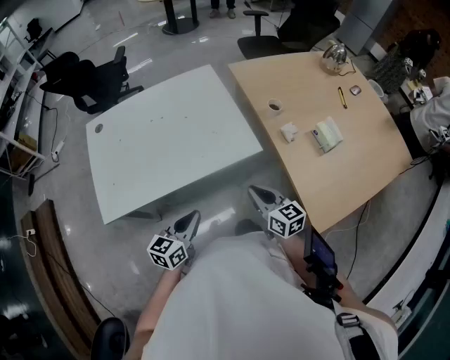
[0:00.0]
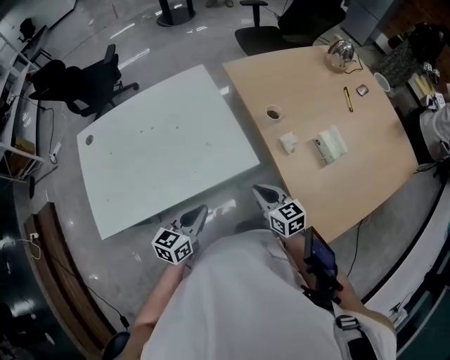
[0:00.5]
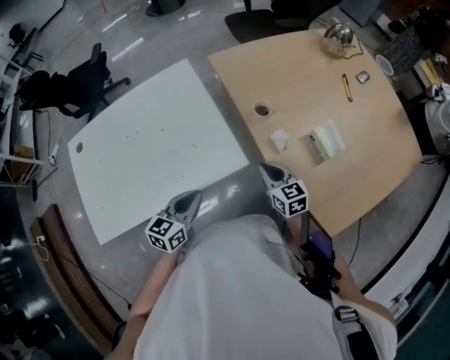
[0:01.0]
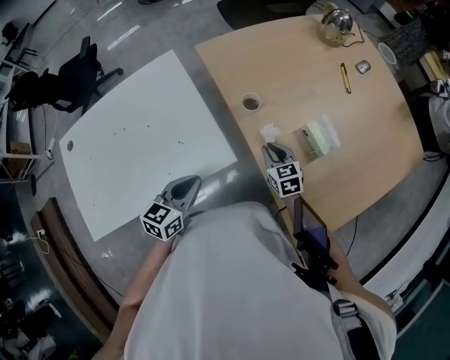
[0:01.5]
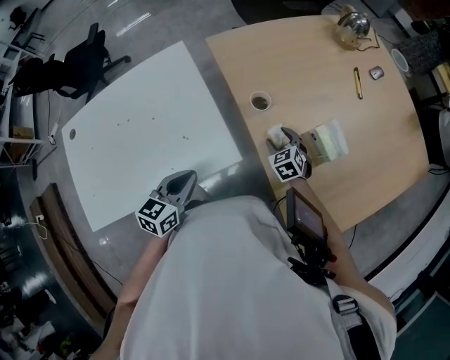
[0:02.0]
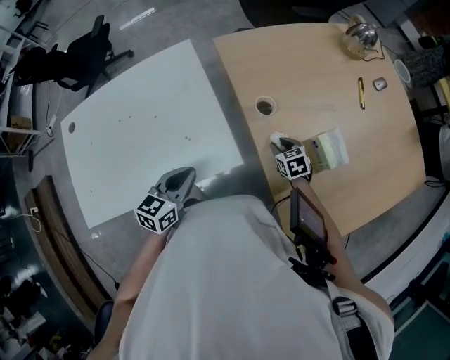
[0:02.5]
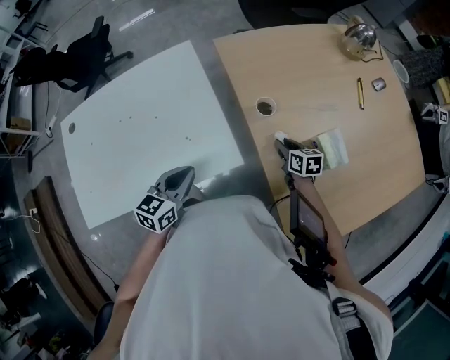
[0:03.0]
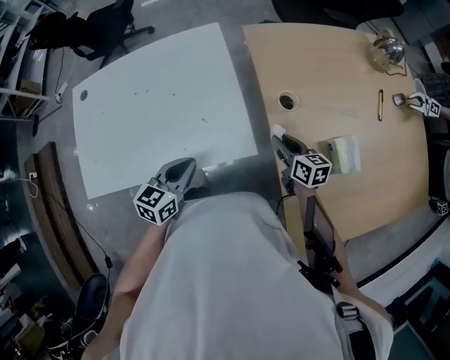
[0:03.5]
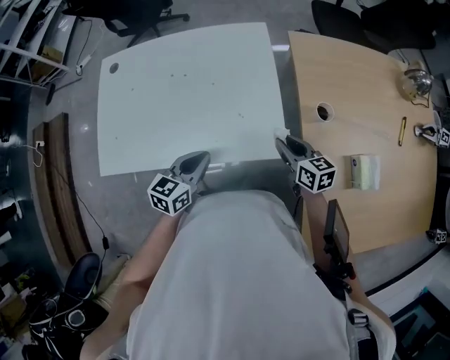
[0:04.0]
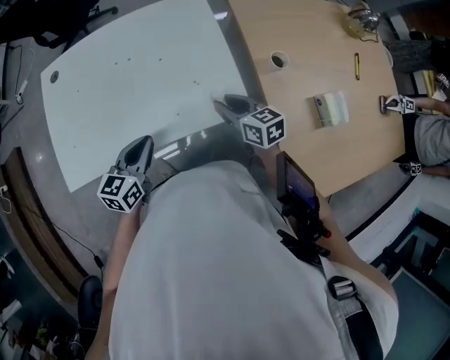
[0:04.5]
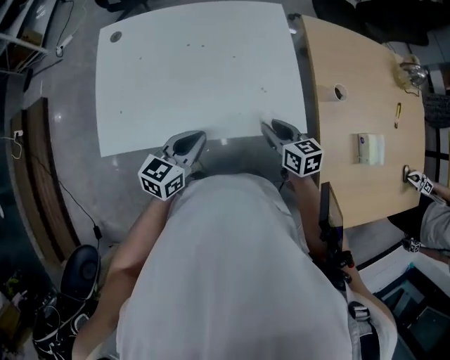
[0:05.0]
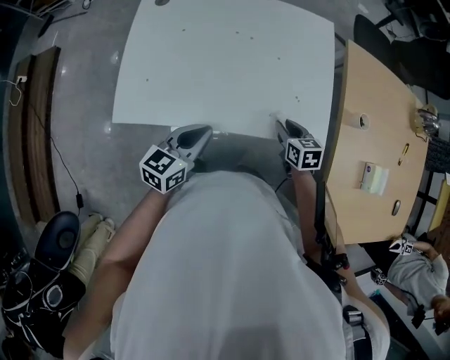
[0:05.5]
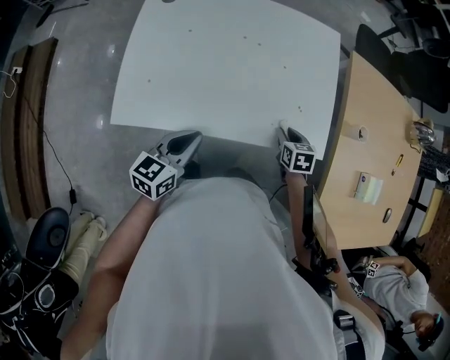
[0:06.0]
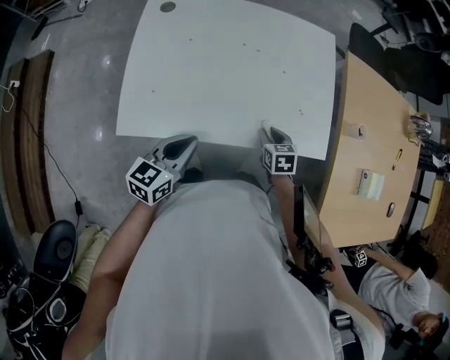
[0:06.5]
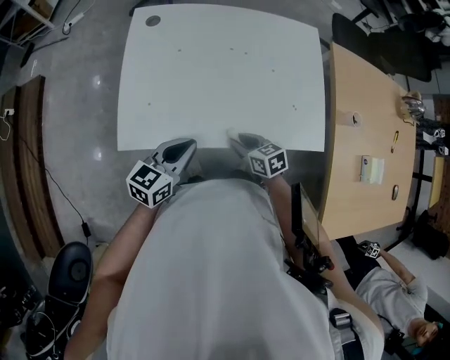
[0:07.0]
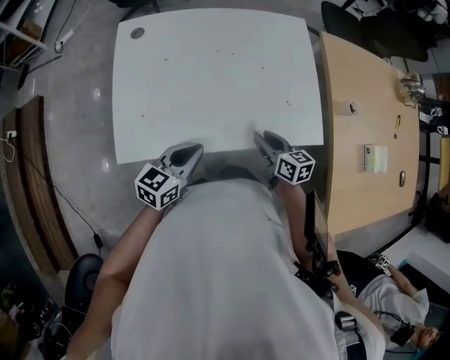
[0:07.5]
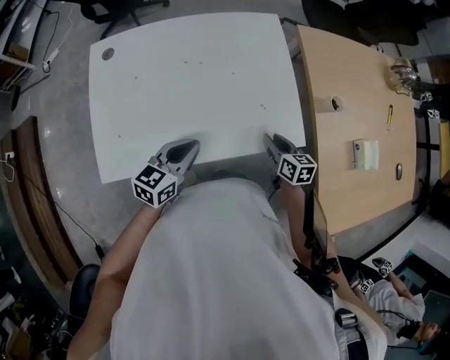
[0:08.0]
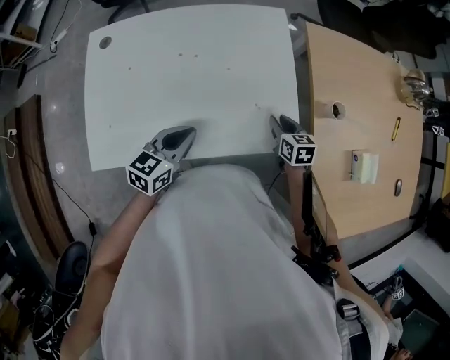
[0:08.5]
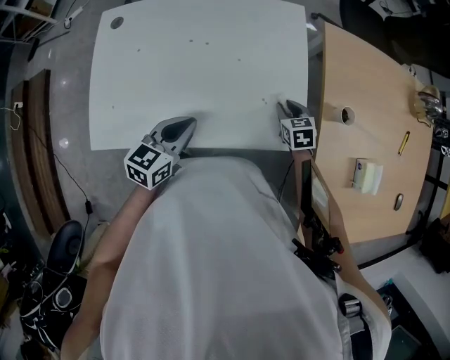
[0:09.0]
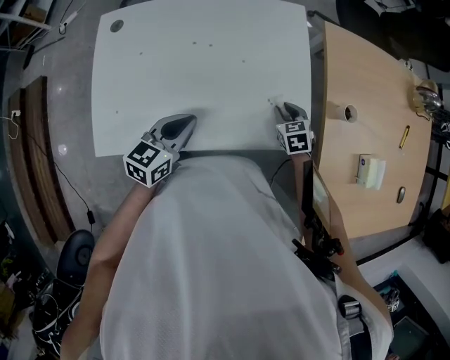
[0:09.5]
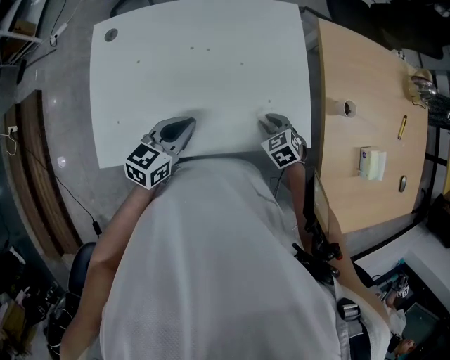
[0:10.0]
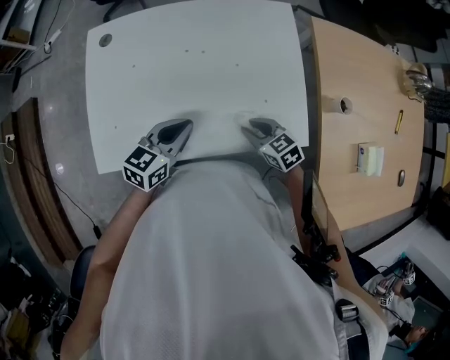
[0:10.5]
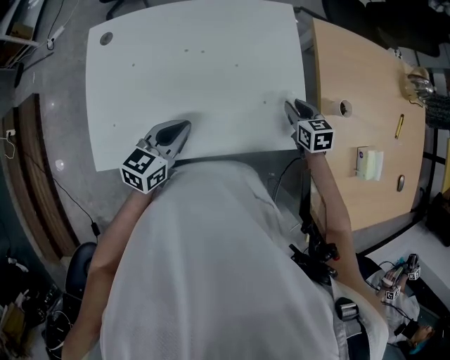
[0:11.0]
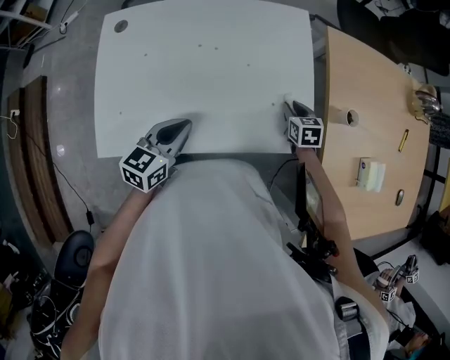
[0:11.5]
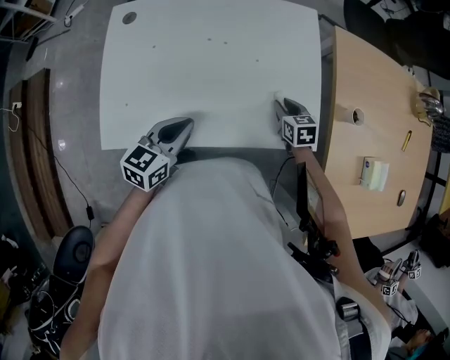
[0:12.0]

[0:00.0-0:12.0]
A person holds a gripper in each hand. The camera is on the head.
0:00.0 to 0:02.0: The right gripper moves forward, to the right and downward, about 35 cm, angles its fingers downward, by about 30 degrees, and opens its fingers, while the left gripper heads forward and to the right, covering about 25 cm.
0:02.0 to 0:04.0: The right gripper moves roughly 20 cm, changes its angle by approximately 40 degrees, and closes its fingers. Meanwhile the left gripper ends up approximately 10 cm from where it was.
0:04.0 to 0:06.0: The left gripper goes approximately 20 cm to the left. Meanwhile the right gripper travels to the left and downward by approximately 20 cm, and rotates about 30 degrees.
0:06.0 to 0:08.0: The left gripper is displaced forward and to the right by approximately 10 cm; the right gripper travels to the left and back again, roughly 20 cm each way, and changes its angle by about 30 degrees.
0:08.0 to 0:10.0: The right gripper goes forward and returns, some 10 cm each way, and rolls counterclockwise, seen from behind, by roughly 50 degrees.
0:10.0 to 0:12.0: The right gripper swings left and right, some 15 cm each way, with 2 reversals, and turns by about 30 degrees.

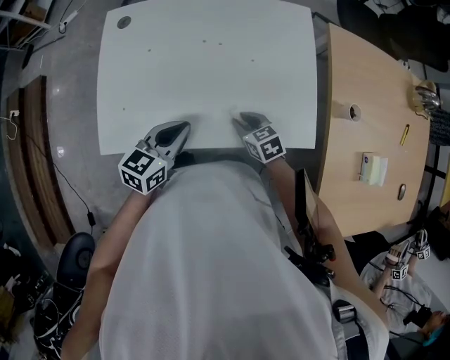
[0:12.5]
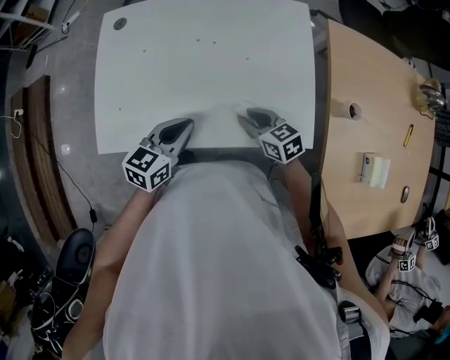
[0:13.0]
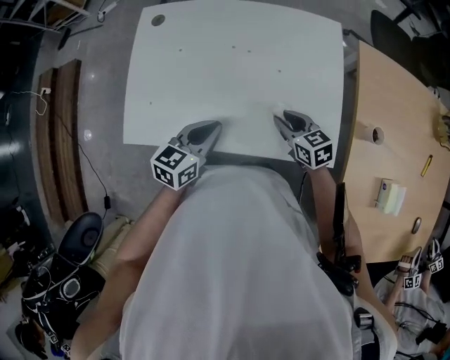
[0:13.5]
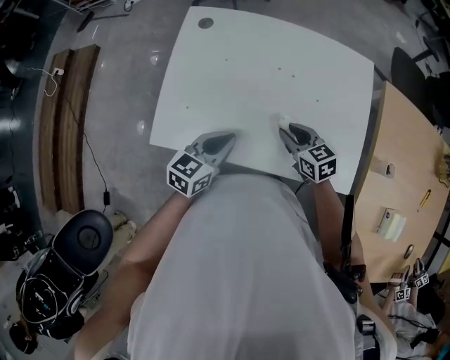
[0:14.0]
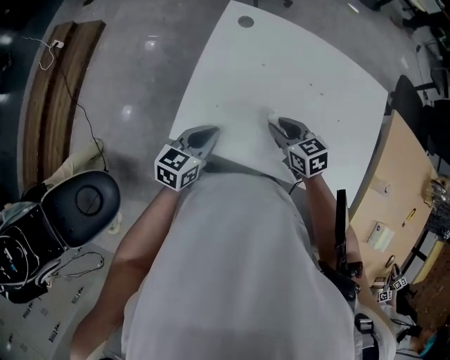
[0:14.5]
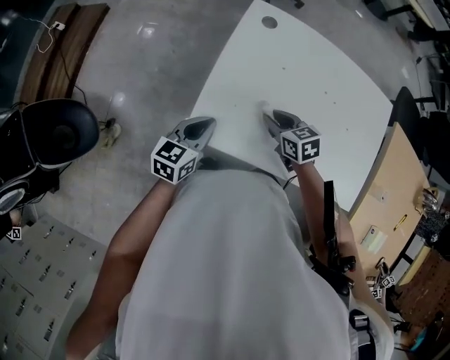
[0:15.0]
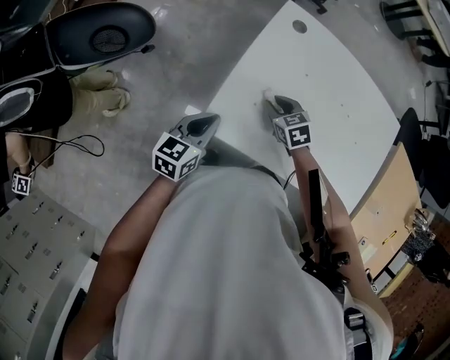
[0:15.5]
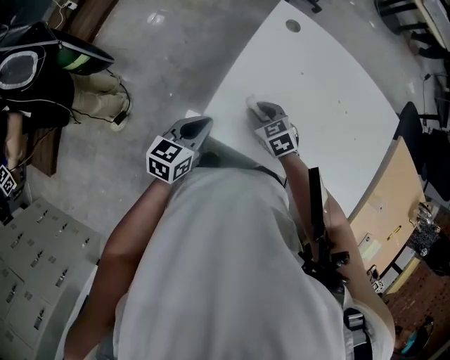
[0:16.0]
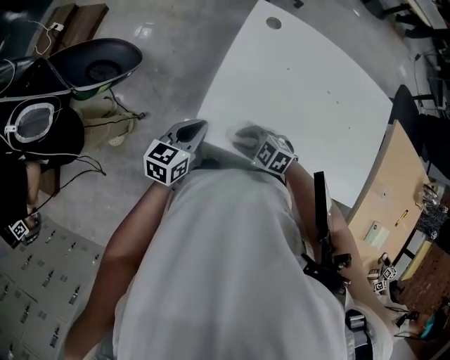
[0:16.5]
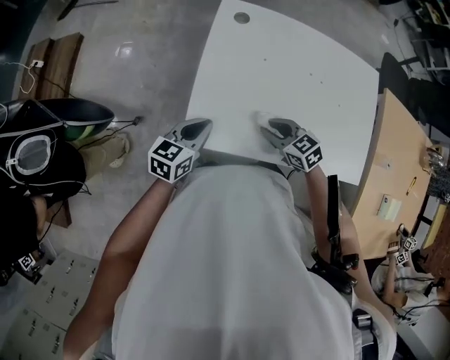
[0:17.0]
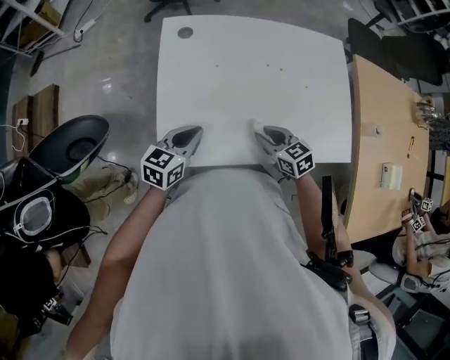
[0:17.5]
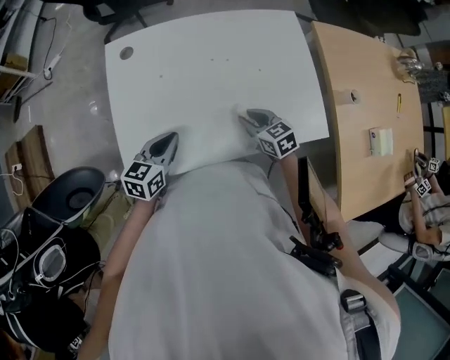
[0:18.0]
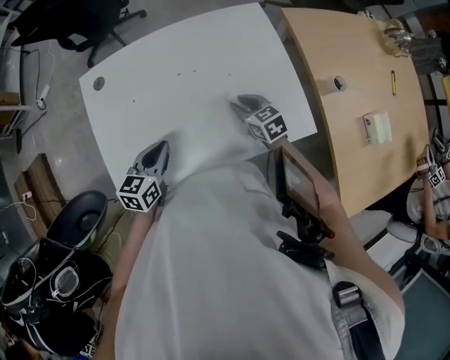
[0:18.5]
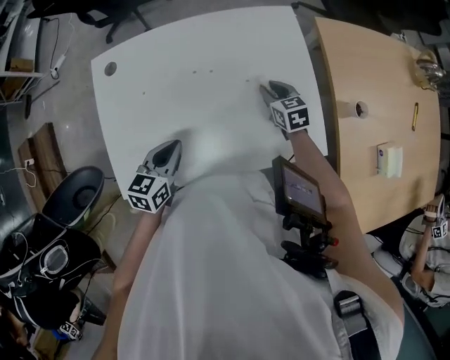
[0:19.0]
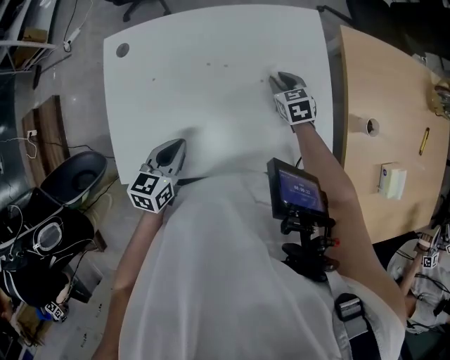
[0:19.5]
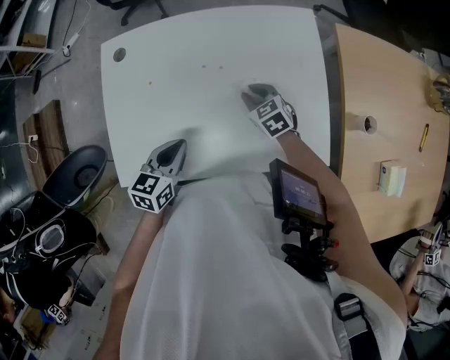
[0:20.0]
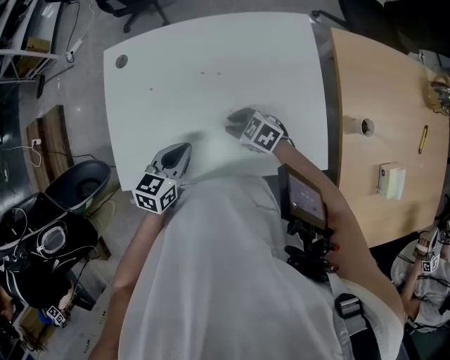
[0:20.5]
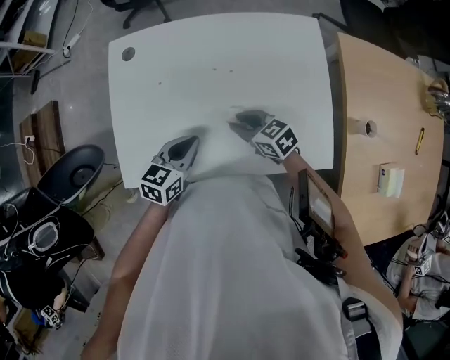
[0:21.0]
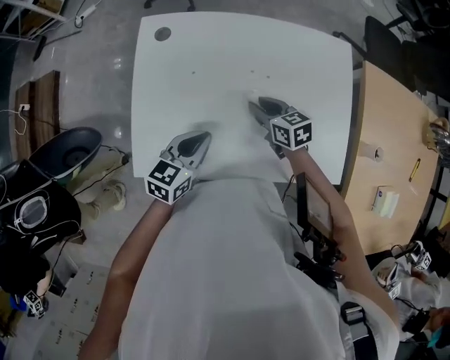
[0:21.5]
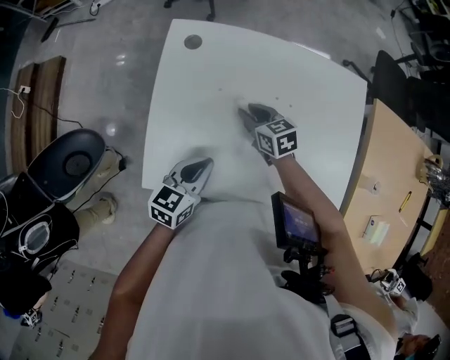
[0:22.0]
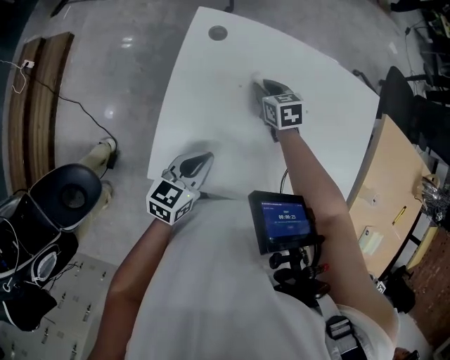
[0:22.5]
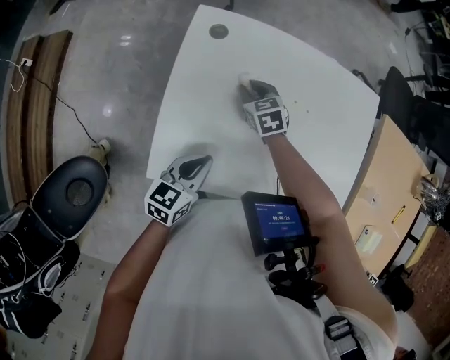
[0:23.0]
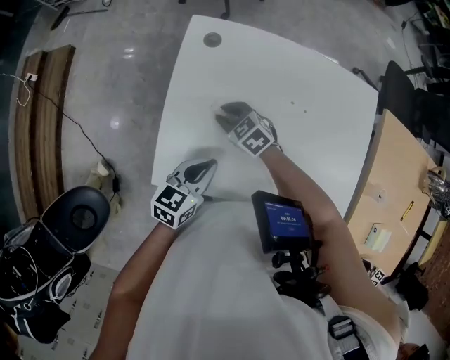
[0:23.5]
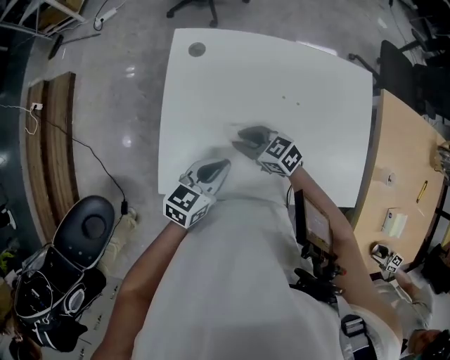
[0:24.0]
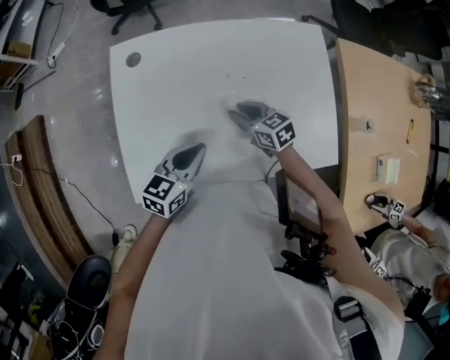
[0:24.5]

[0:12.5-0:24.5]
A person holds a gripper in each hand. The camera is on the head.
0:12.5 to 0:14.5: The left gripper moves to the left, some 20 cm, and rotates roughly 20 degrees, while the right gripper travels to the left, forward and upward by some 20 cm.
0:14.5 to 0:16.5: The right gripper travels to the left and downward by about 20 cm, and rotates some 40 degrees; the left gripper moves to the left, about 10 cm.
0:16.5 to 0:18.5: The left gripper ends up some 25 cm from where it was, and changes its angle by roughly 30 degrees. The right gripper changes place by roughly 40 cm, and rotates roughly 70 degrees.
0:18.5 to 0:20.5: The right gripper ends up about 10 cm from where it was, and changes its angle by roughly 40 degrees; the left gripper ends up some 5 cm from where it was.
0:20.5 to 0:22.5: The left gripper goes approximately 15 cm to the left; the right gripper is displaced forward and to the left by some 25 cm, and changes its angle by some 30 degrees.
0:22.5 to 0:24.5: The right gripper shifts approximately 15 cm backward and to the right; the left gripper heads to the right, covering approximately 10 cm.

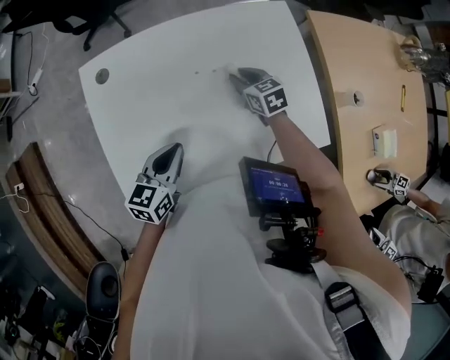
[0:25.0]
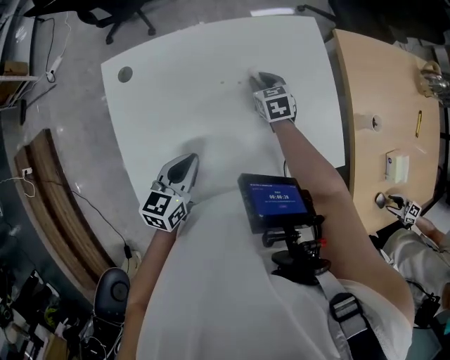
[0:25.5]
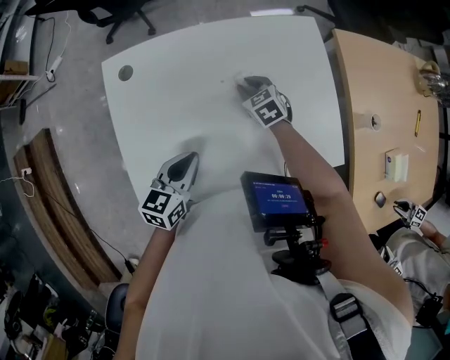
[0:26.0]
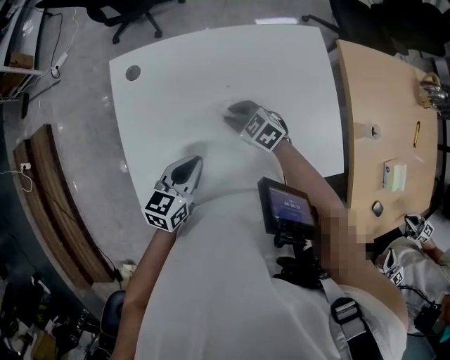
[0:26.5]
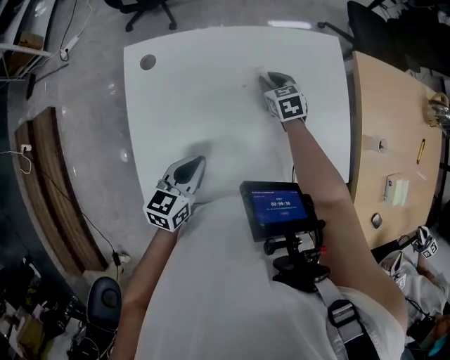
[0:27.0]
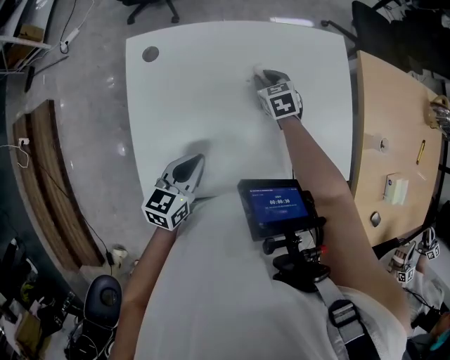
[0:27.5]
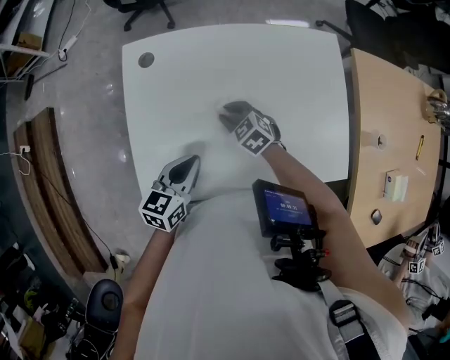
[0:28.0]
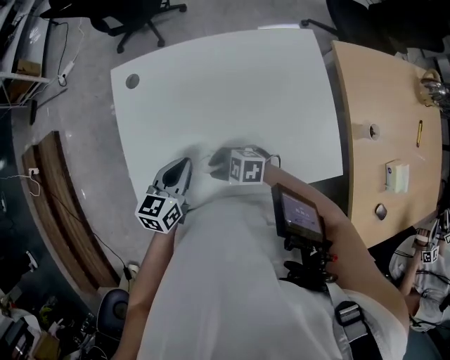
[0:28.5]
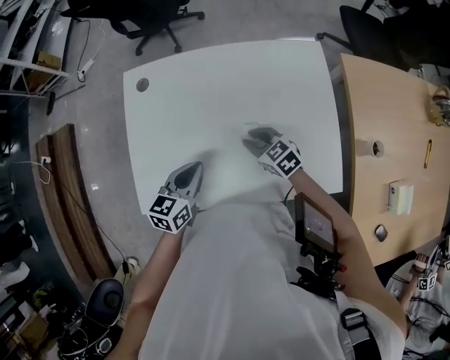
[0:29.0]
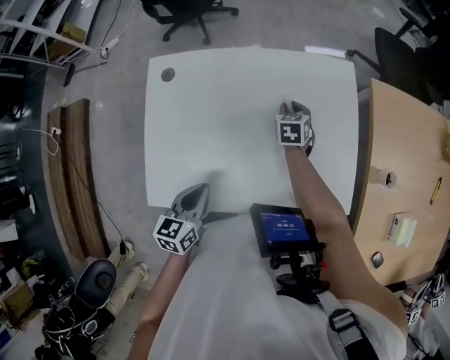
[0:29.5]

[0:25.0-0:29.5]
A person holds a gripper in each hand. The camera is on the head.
0:25.0 to 0:27.0: The right gripper is displaced forward by roughly 5 cm.
